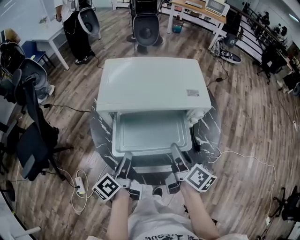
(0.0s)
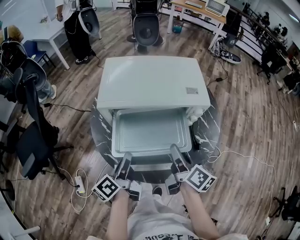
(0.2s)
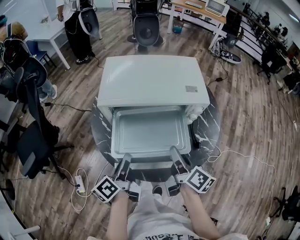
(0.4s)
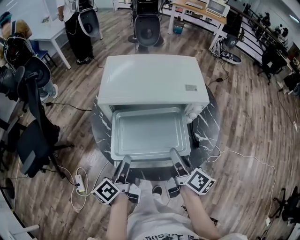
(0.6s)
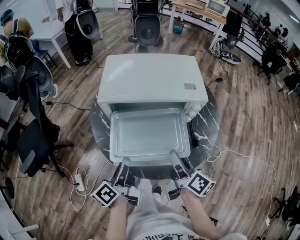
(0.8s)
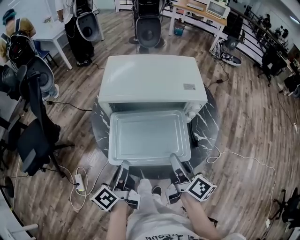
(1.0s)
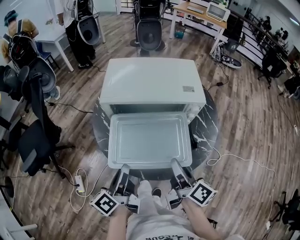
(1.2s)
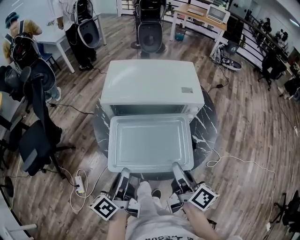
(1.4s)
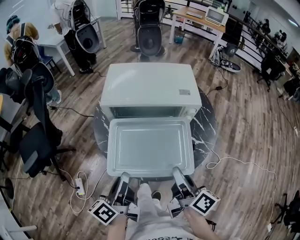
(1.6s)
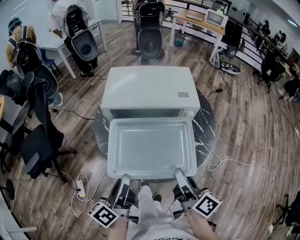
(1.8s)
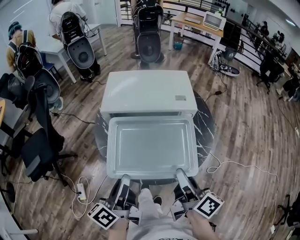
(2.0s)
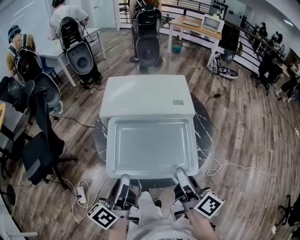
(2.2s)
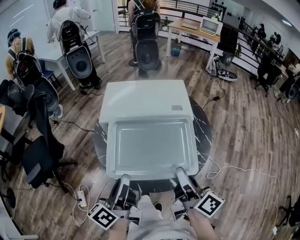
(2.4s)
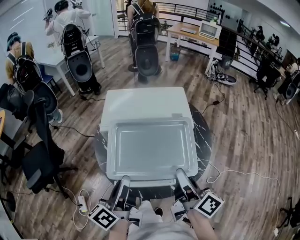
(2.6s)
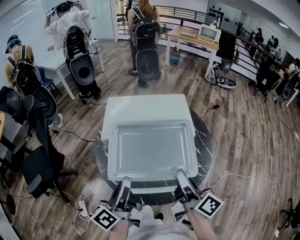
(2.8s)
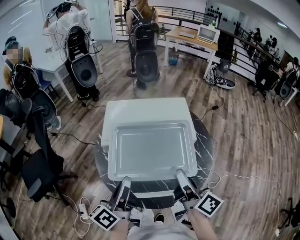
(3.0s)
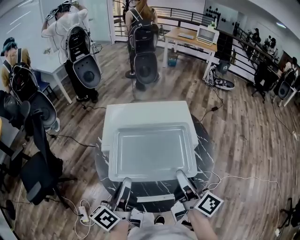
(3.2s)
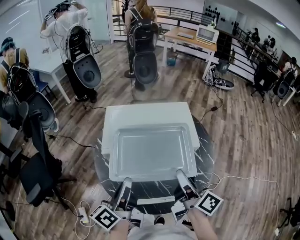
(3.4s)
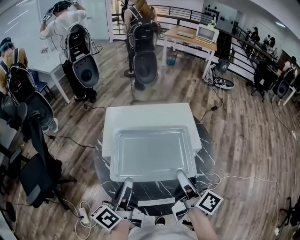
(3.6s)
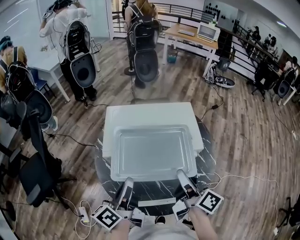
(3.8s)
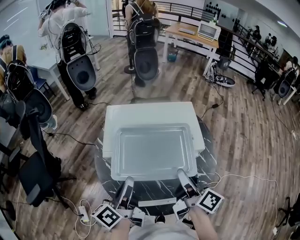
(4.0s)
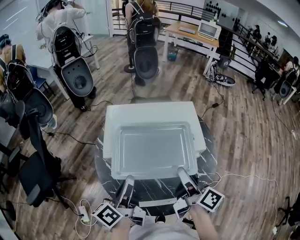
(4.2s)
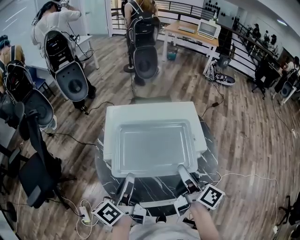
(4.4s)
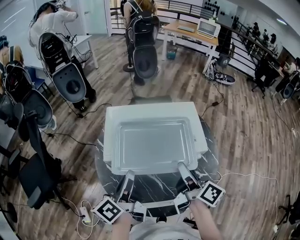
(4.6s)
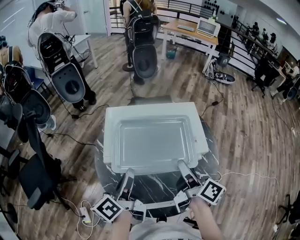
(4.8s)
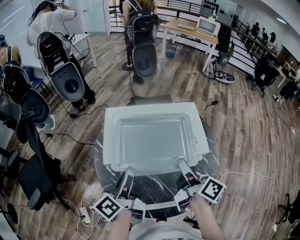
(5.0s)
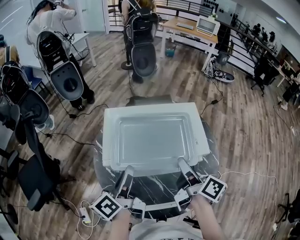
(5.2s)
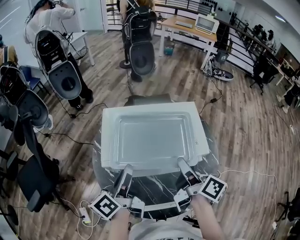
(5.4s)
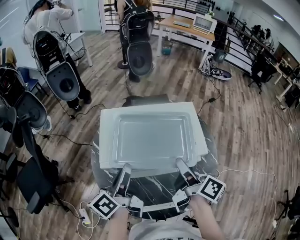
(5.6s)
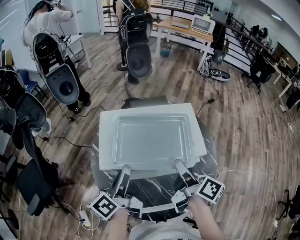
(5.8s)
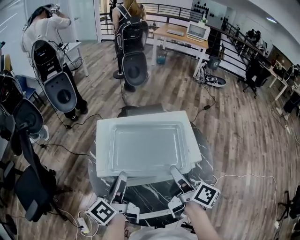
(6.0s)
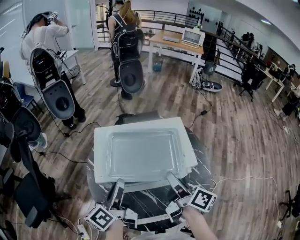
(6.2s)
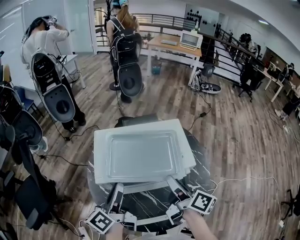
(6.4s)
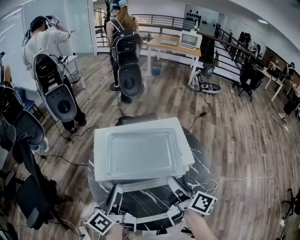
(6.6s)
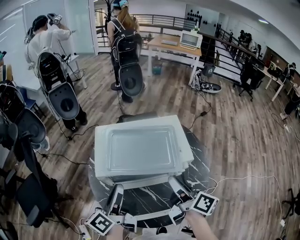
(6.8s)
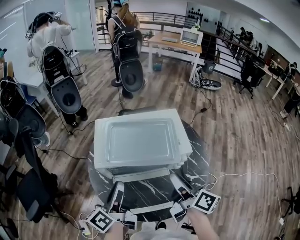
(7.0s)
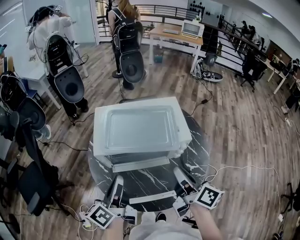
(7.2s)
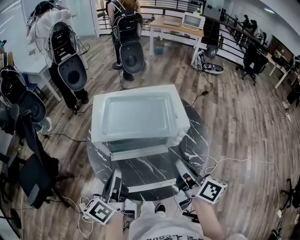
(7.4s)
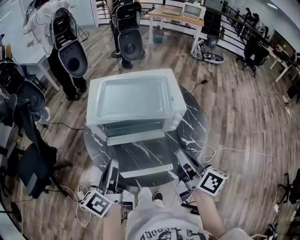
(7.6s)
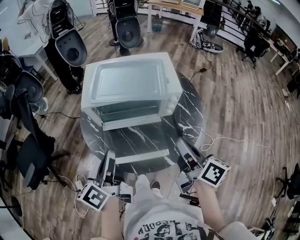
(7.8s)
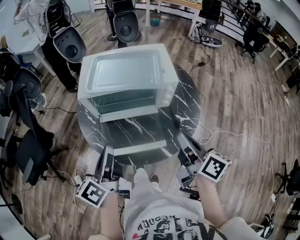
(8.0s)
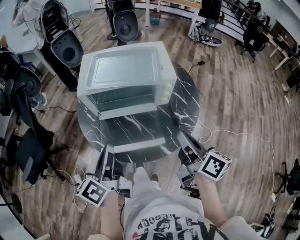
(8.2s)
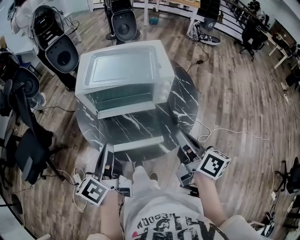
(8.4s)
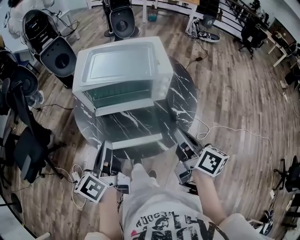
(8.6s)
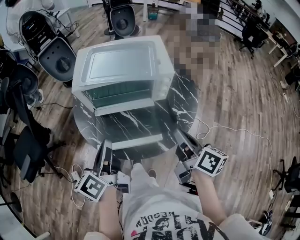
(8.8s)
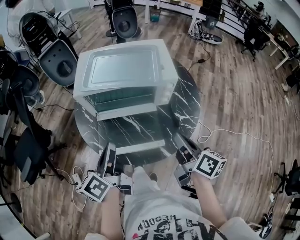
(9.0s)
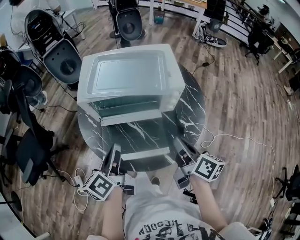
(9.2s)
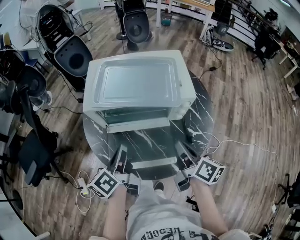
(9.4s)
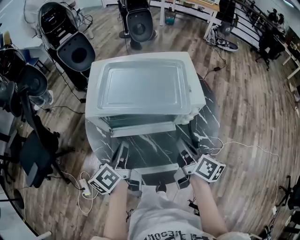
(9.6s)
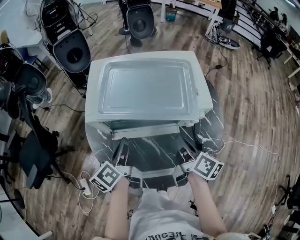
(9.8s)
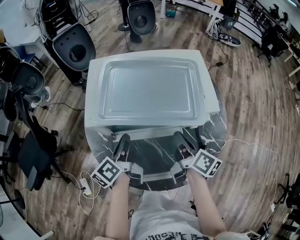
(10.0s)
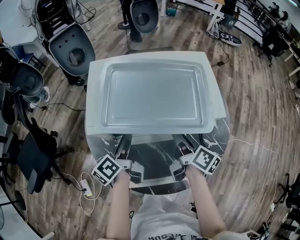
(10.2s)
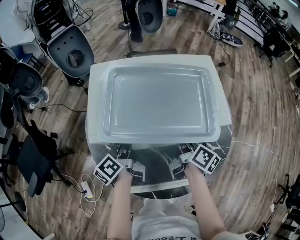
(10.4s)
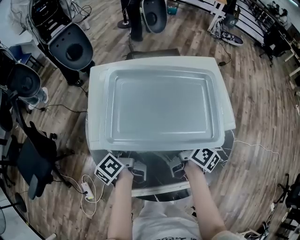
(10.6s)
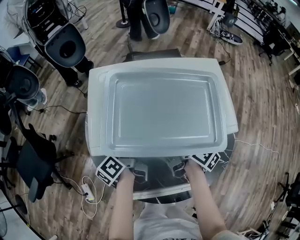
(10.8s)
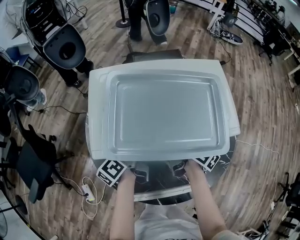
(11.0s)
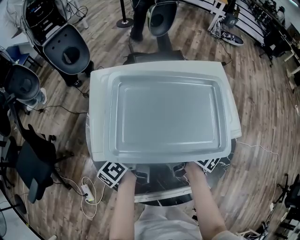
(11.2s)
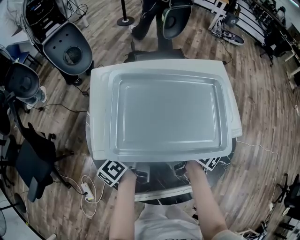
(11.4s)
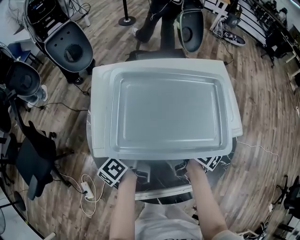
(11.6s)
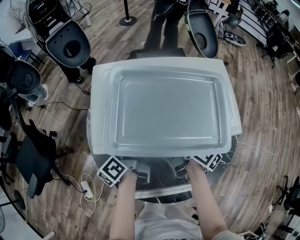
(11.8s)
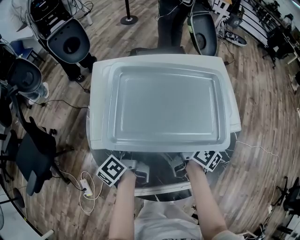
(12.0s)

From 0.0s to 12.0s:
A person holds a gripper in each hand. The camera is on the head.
From 0.0s to 1.6s: The two grippers go about 15 cm backward and upward.
From 1.6s to 3.0s: The grippers both shift forward and upward by roughly 15 cm.
From 3.0s to 4.4s: Both grippers move forward, some 5 cm.
From 4.4s to 6.0s: The left gripper moves forward, roughly 5 cm.
From 6.0s to 7.6s: Both grippers move backward, some 15 cm. The right gripper closes its fingers.
From 7.6s to 9.0s: The right gripper travels downward by about 5 cm, while the left gripper shifts by about 5 cm.
From 9.0s to 10.4s: The right gripper moves forward, downward and to the left, approximately 25 cm, and opens up. The left gripper travels forward and downward by some 25 cm, and opens up.
From 10.4s to 12.0s: The left gripper closes its fingers. The right gripper closes.

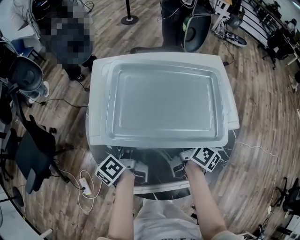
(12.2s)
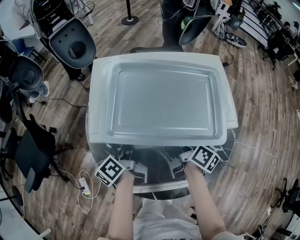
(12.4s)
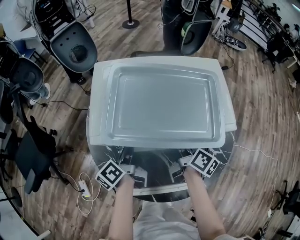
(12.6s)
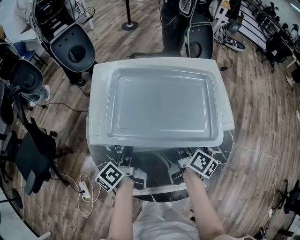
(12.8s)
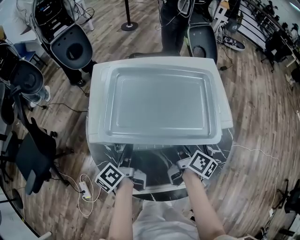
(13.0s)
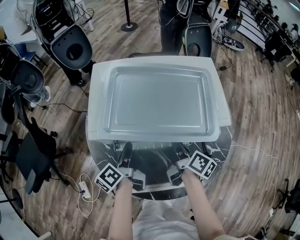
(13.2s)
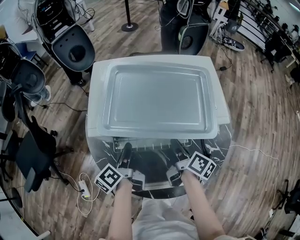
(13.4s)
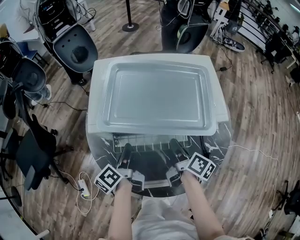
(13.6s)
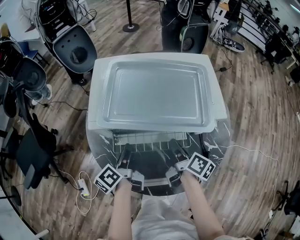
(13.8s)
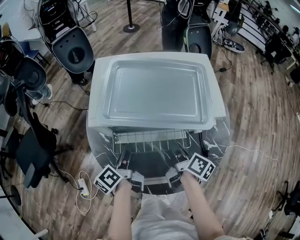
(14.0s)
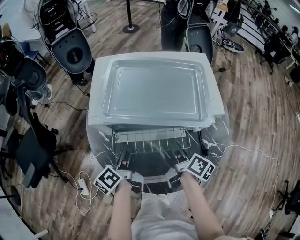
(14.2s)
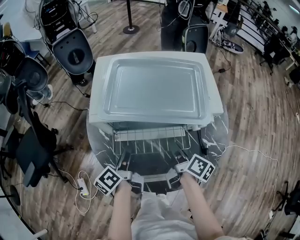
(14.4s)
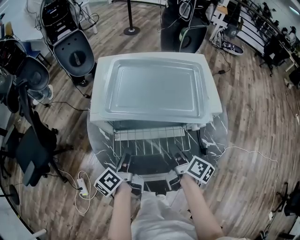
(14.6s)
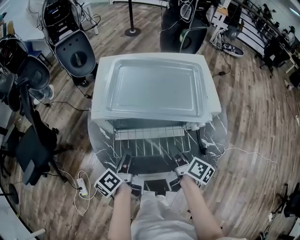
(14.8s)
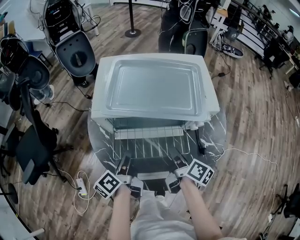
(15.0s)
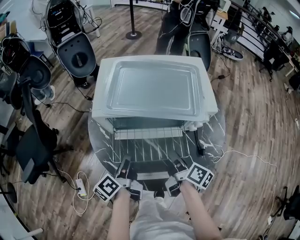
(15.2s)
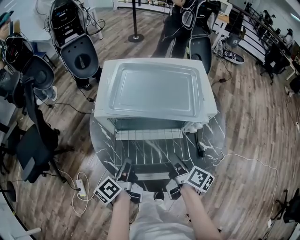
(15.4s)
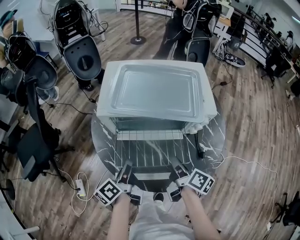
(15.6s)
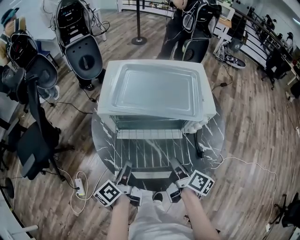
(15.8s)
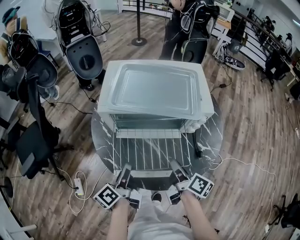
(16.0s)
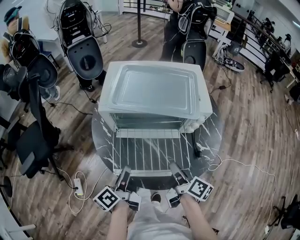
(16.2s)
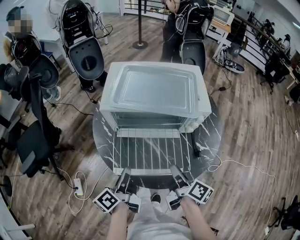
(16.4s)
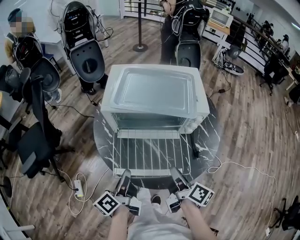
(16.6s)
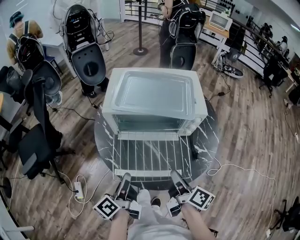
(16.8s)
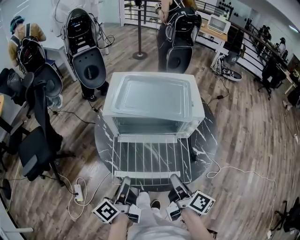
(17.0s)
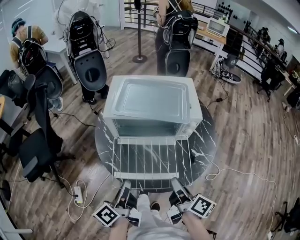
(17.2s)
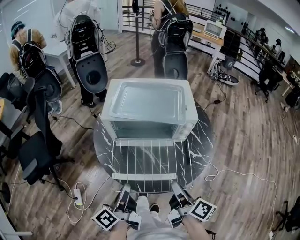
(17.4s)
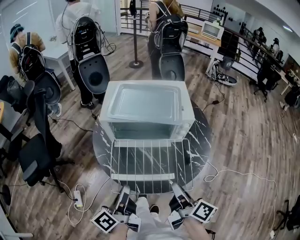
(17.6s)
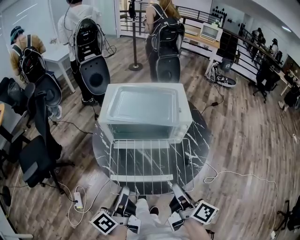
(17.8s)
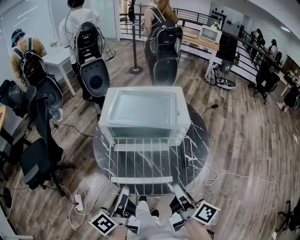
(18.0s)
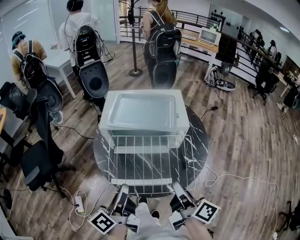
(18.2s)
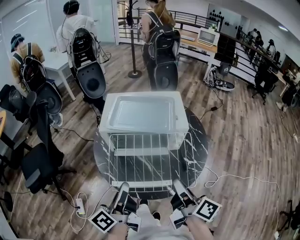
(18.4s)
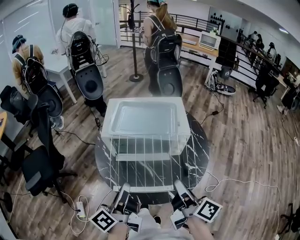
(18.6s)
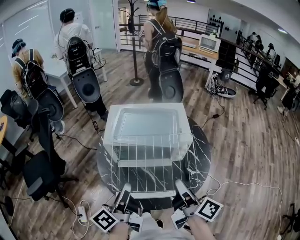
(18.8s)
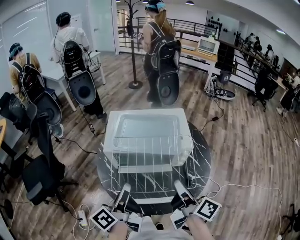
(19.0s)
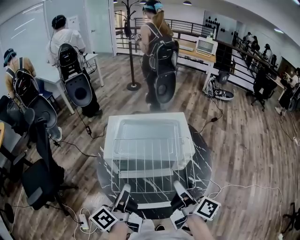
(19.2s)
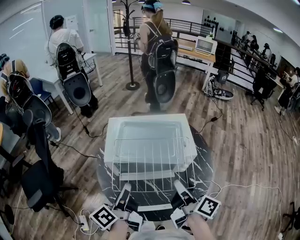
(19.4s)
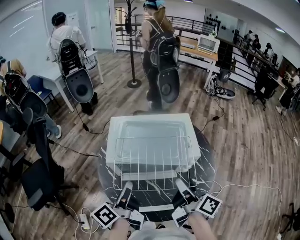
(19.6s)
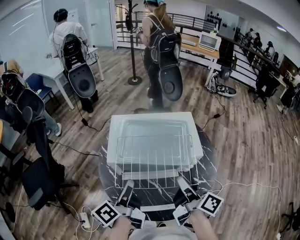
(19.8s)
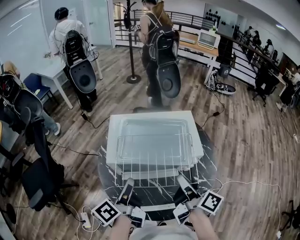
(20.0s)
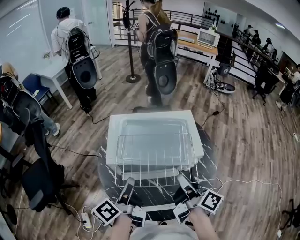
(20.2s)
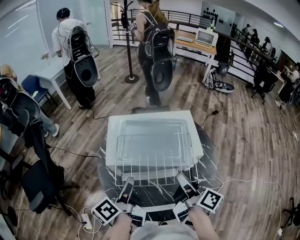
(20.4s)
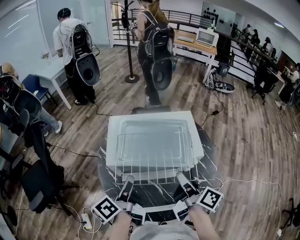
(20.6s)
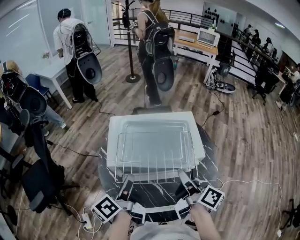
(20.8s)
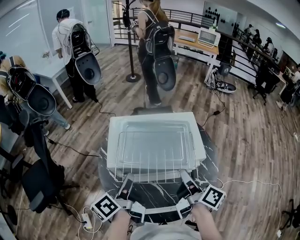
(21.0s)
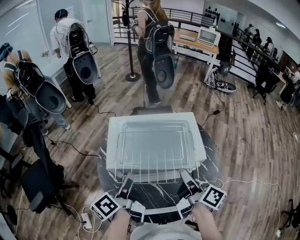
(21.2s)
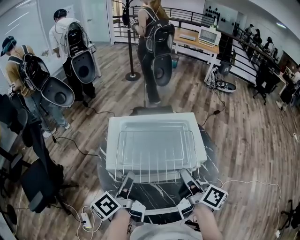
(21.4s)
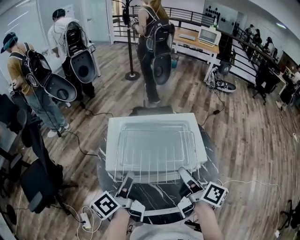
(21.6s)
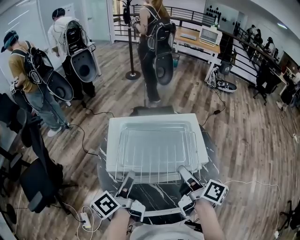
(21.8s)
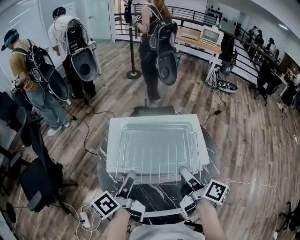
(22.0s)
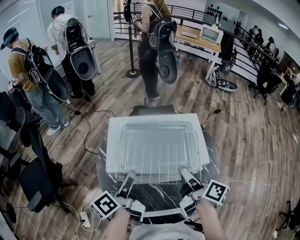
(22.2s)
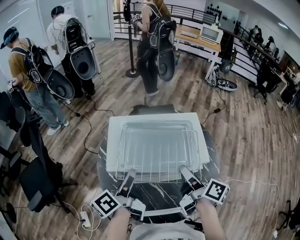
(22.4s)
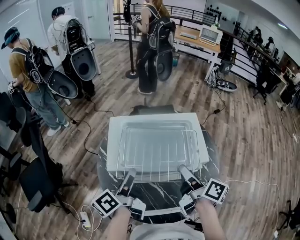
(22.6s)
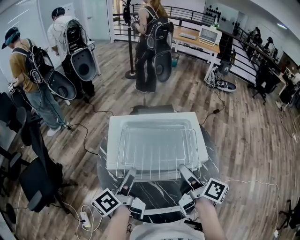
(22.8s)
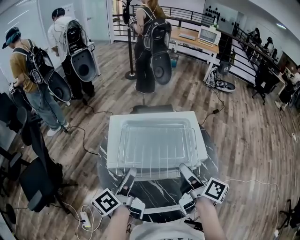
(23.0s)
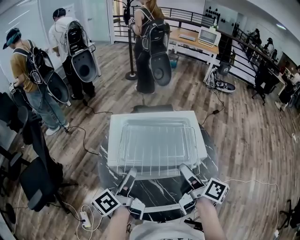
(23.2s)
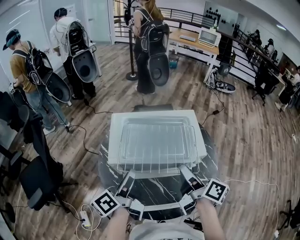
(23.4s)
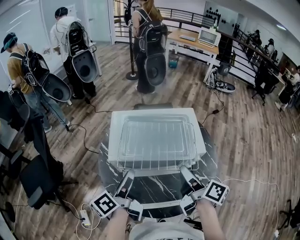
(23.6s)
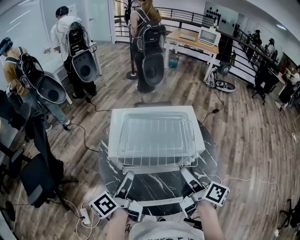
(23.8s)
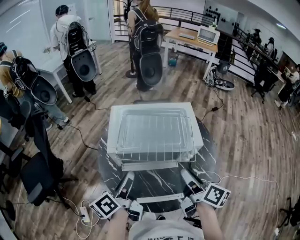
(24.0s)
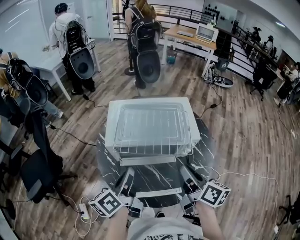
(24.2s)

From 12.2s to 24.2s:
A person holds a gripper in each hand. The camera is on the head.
From 12.2s to 13.8s: The two grippers go roughly 5 cm backward.
From 13.8s to 15.2s: The two grippers go about 5 cm backward.
From 15.2s to 16.6s: The two grippers go roughly 10 cm backward.
From 16.6s to 18.2s: The left gripper is displaced upward by roughly 15 cm. The right gripper is displaced upward and backward by some 15 cm.
From 18.2s to 19.8s: Both grippers travel together forward, approximately 15 cm.
From 19.8s to 21.2s: The left gripper goes about 5 cm forward.
From 21.2s to 22.6s: The right gripper opens its fingers.
From 22.6s to 24.2s: The two grippers go some 10 cm backward. The right gripper closes its fingers.
